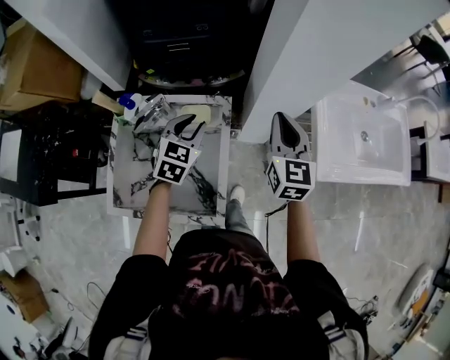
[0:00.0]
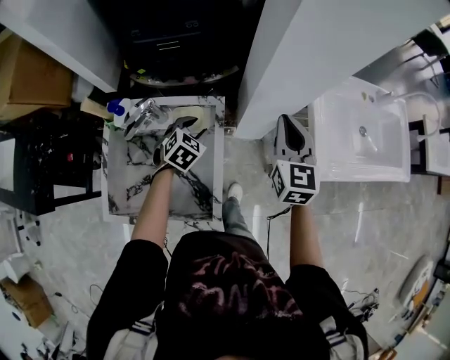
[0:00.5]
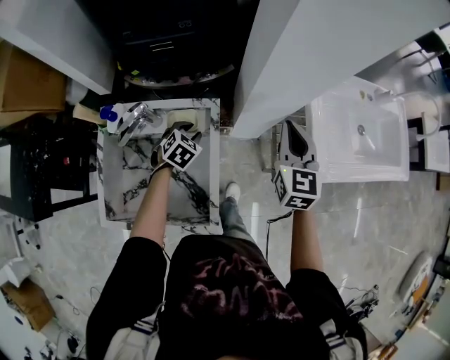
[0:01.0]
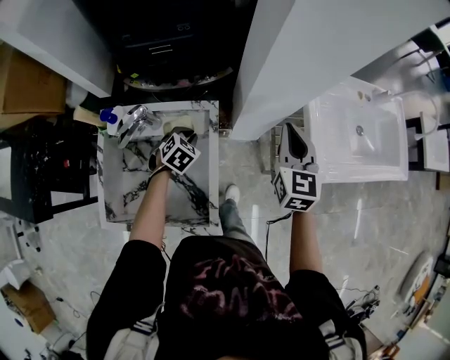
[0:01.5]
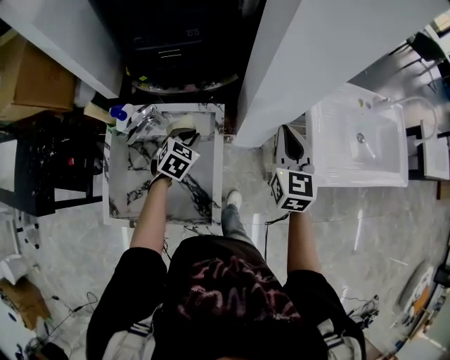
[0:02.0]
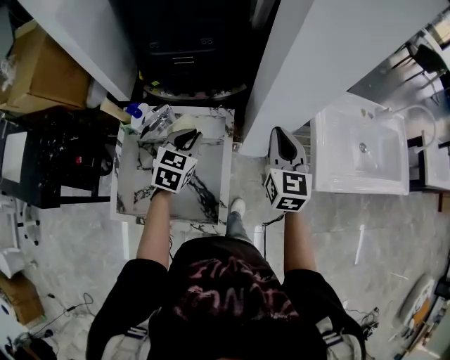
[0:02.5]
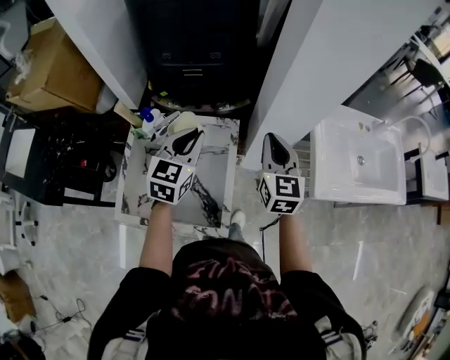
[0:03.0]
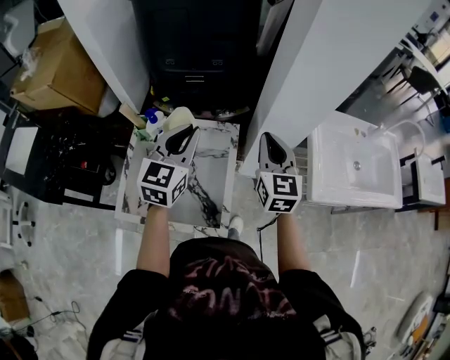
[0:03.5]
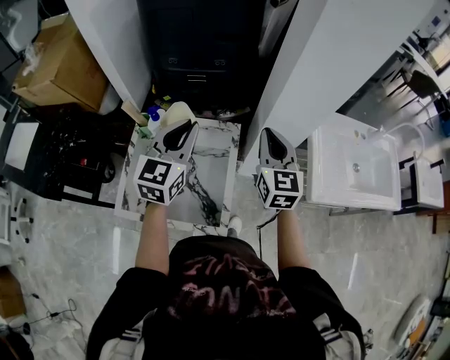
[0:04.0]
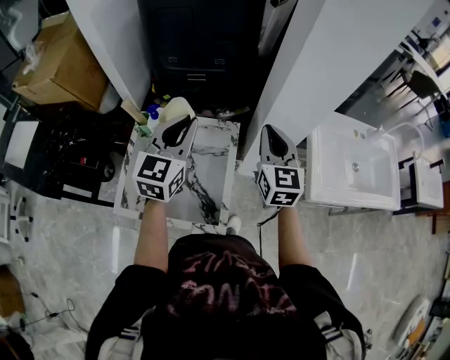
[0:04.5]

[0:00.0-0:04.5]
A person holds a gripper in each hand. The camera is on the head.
0:00.0 to 0:02.0: The left gripper goes roughly 10 cm downward.
0:02.0 to 0:04.5: The right gripper travels to the left and upward by about 15 cm; the left gripper goes approximately 30 cm upward, and angles its fingers upward, by roughly 40 degrees.

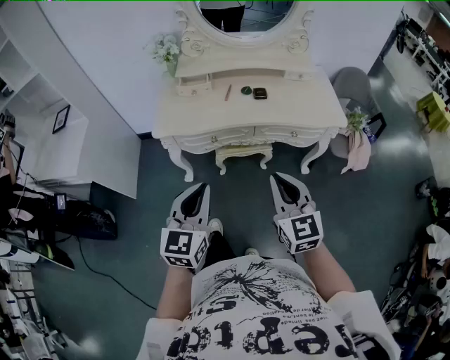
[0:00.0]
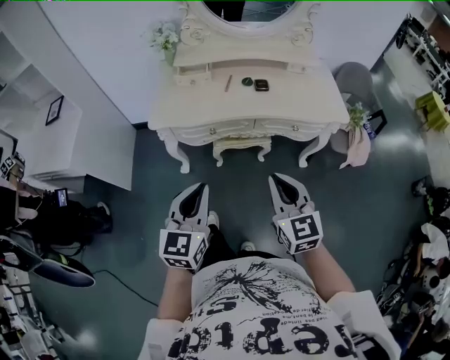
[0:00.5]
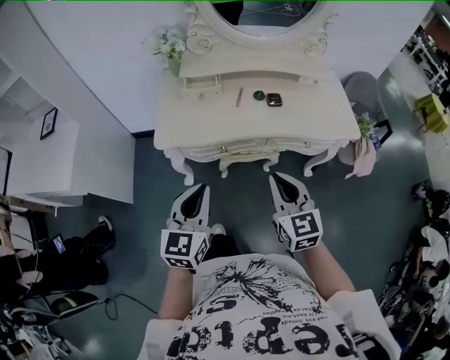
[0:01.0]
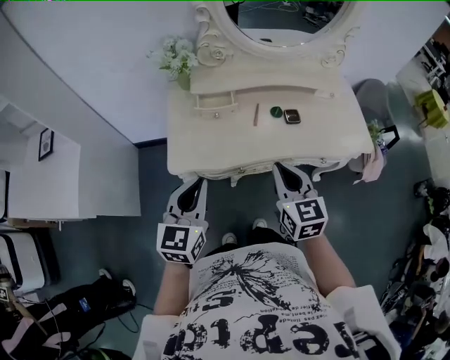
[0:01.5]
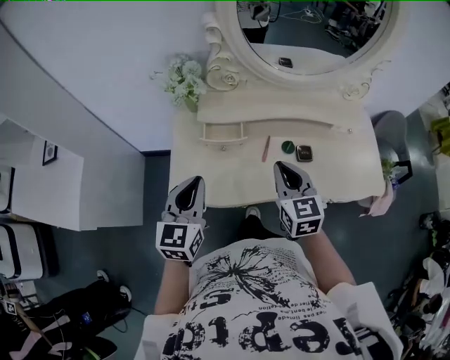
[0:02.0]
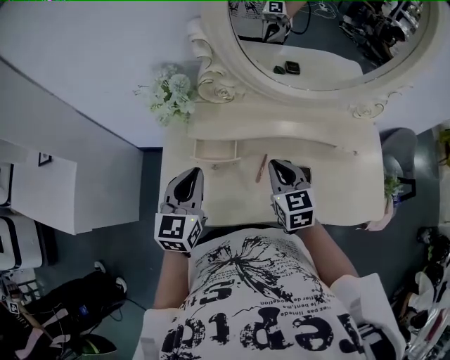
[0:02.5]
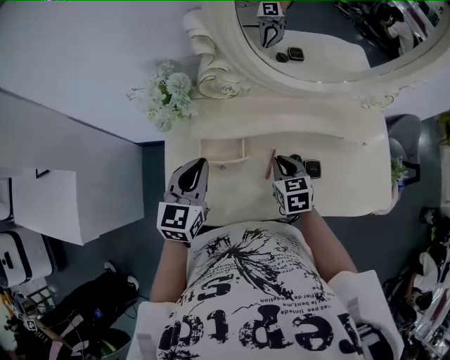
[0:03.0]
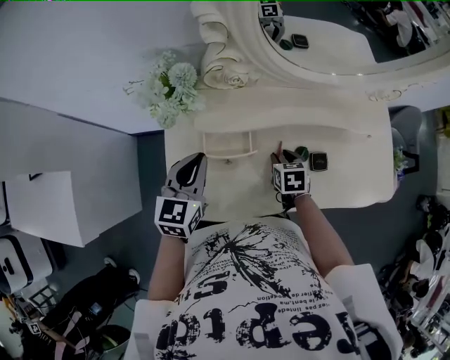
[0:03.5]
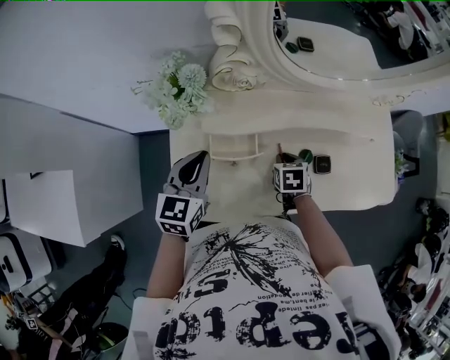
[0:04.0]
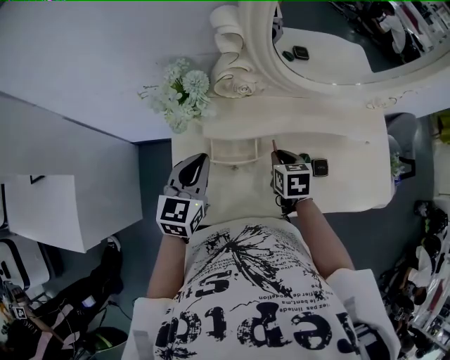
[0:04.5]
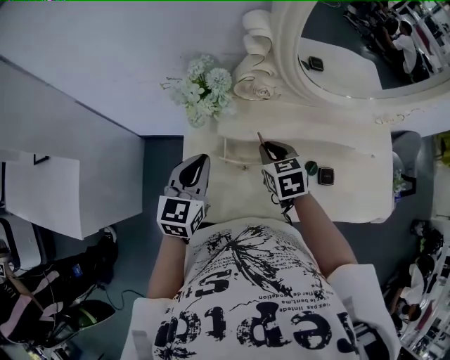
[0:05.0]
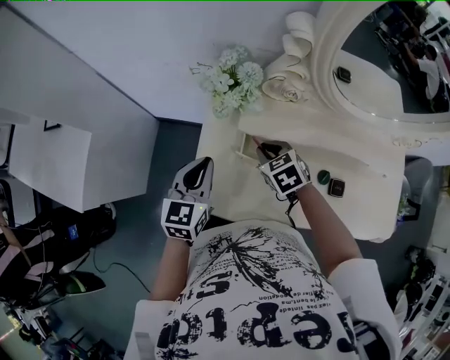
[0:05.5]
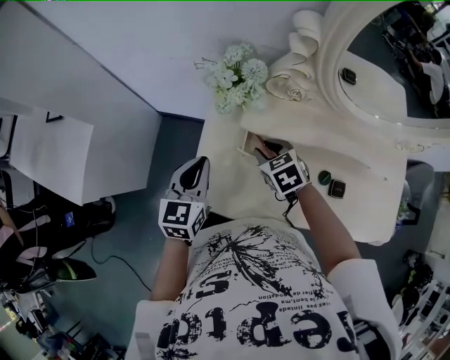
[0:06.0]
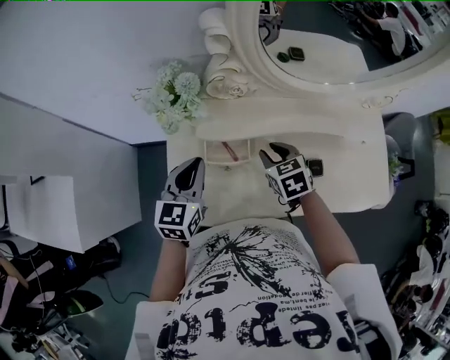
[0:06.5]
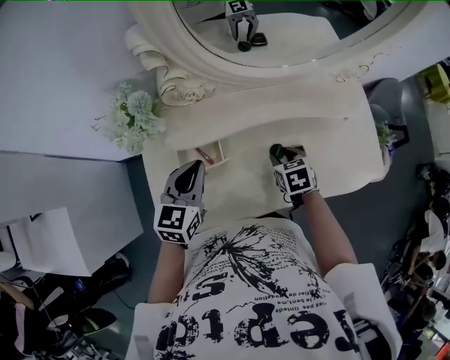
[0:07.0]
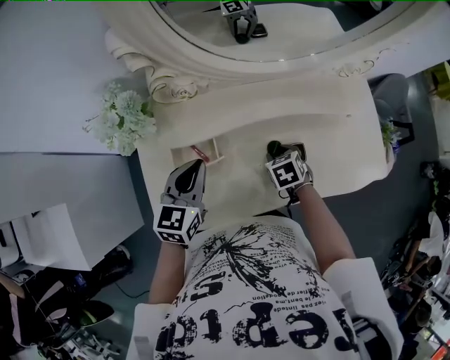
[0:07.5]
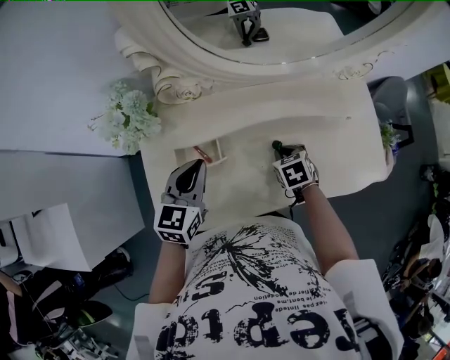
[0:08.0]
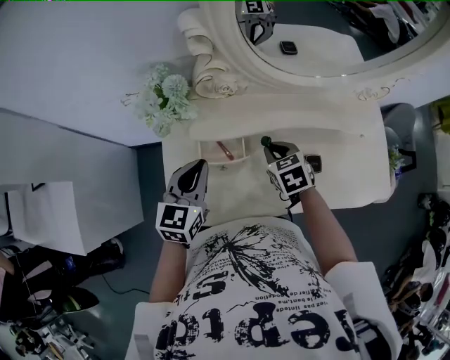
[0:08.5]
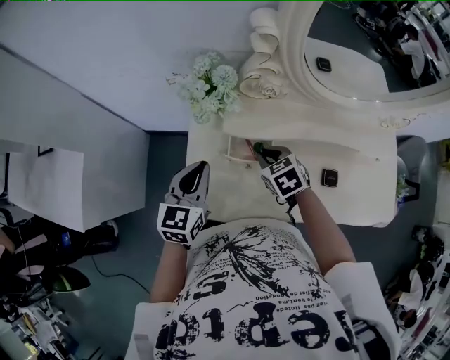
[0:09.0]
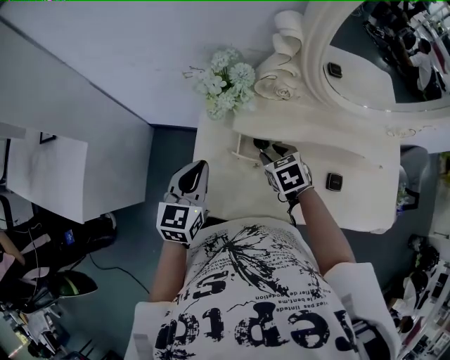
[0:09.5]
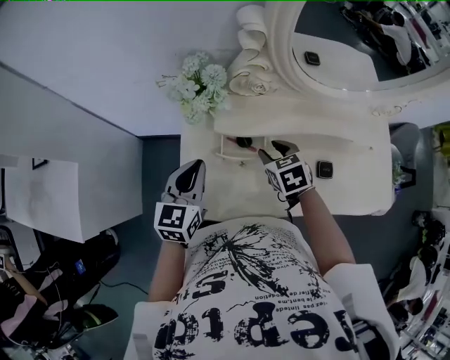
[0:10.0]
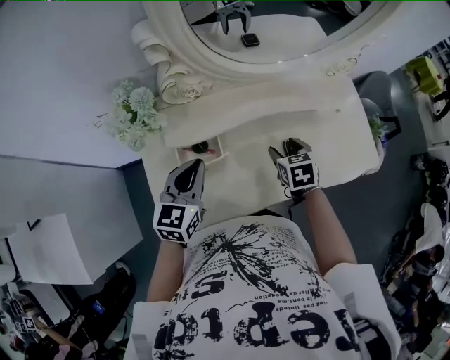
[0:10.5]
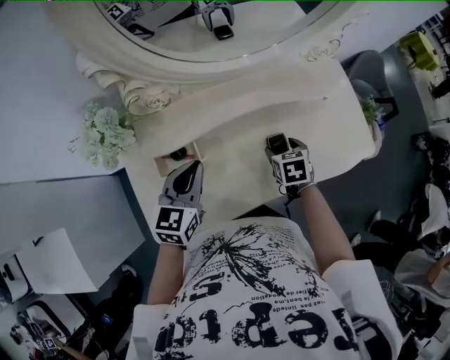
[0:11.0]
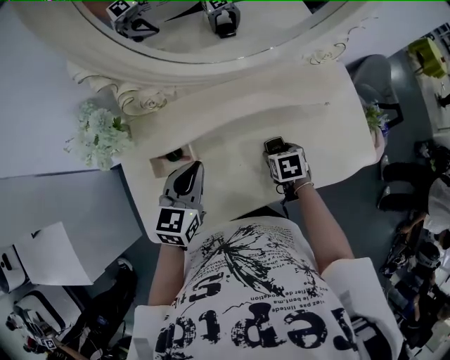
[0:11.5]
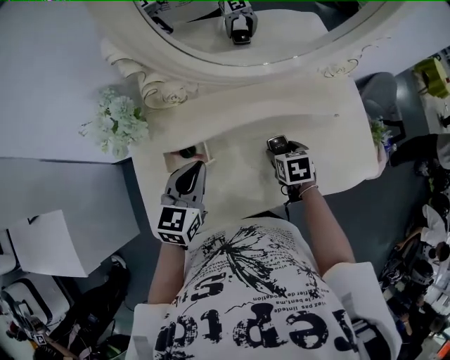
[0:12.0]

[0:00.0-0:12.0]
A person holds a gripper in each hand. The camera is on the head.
0:00.0 to 0:02.0: The left gripper travels forward and to the left by roughly 40 cm. The right gripper travels forward by roughly 40 cm.
0:02.0 to 0:04.0: The left gripper moves forward, about 20 cm, while the right gripper heads downward and forward, covering approximately 25 cm, and points its fingers some 40 degrees further downward.
0:04.0 to 0:06.0: The left gripper moves approximately 10 cm. The right gripper moves some 20 cm, and changes its angle by approximately 40 degrees.
0:06.0 to 0:08.0: The left gripper shifts by approximately 20 cm, and turns by about 30 degrees. The right gripper changes place by some 30 cm, and changes its angle by about 40 degrees.
0:08.0 to 0:10.0: The right gripper shifts roughly 20 cm to the left and upward, and opens. Meanwhile the left gripper moves to the left, about 15 cm.
0:10.0 to 0:12.0: The right gripper moves about 25 cm, rotates approximately 30 degrees, and opens up. The left gripper shifts by some 20 cm.

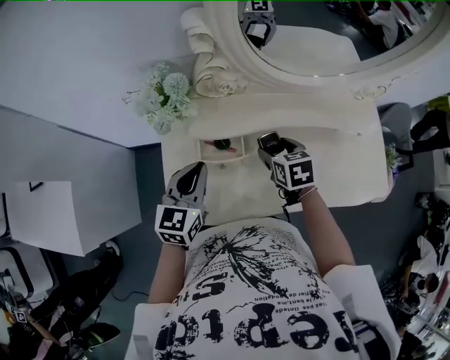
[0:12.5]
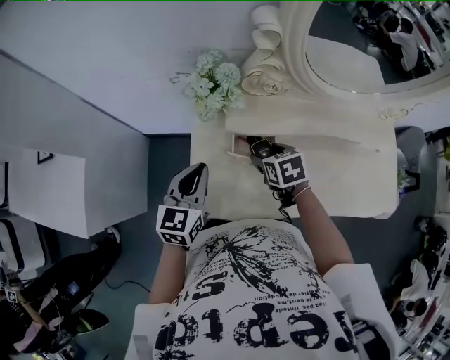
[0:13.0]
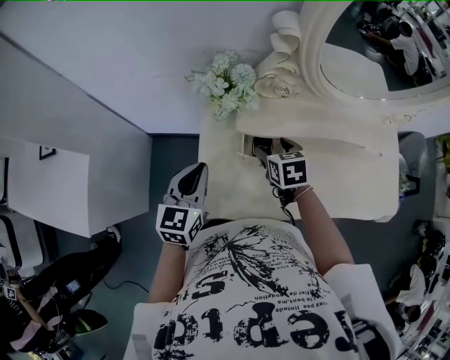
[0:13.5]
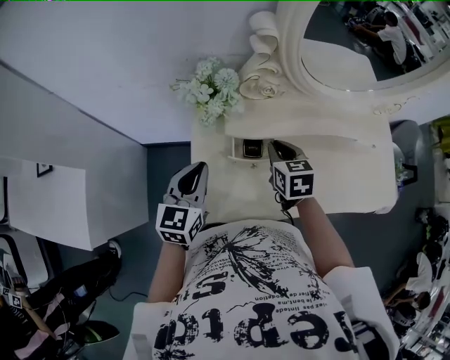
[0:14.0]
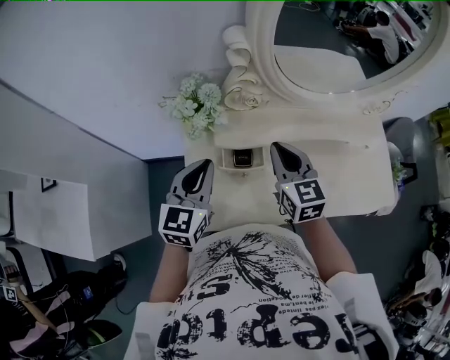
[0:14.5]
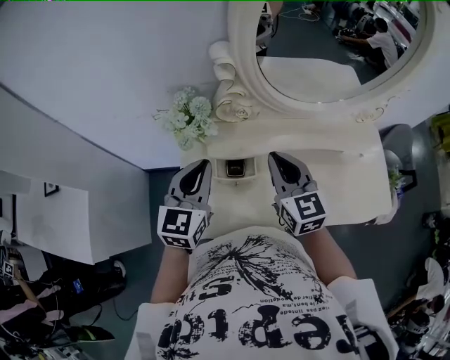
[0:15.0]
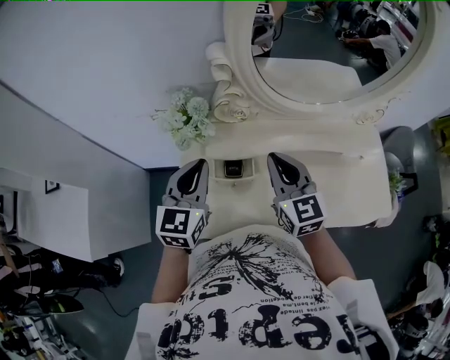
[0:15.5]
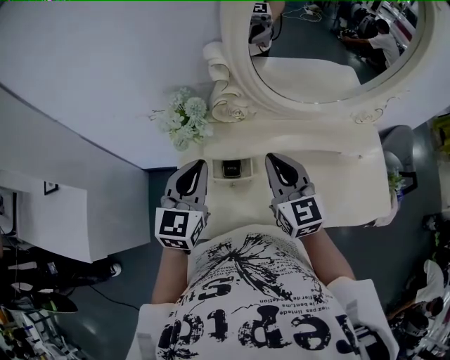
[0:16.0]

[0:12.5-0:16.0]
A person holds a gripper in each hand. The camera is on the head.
0:12.5 to 0:14.5: The right gripper travels upward and to the left by some 15 cm, angles its fingers upward, by some 30 degrees, and closes its fingers. Meanwhile the left gripper is displaced upward by roughly 10 cm, and goes to the left and returns, roughly 15 cm each way.
0:14.5 to 0:16.0: The grippers stay close to where they were, moving slightly.

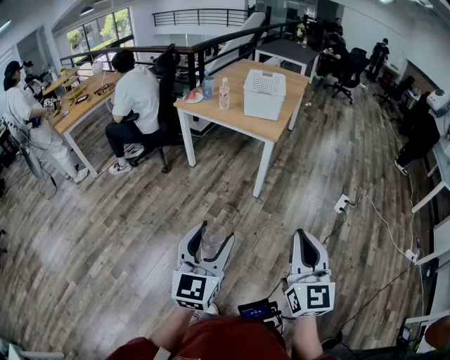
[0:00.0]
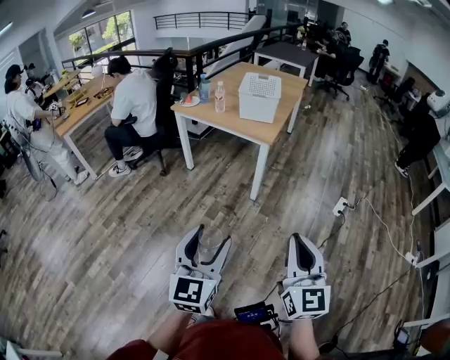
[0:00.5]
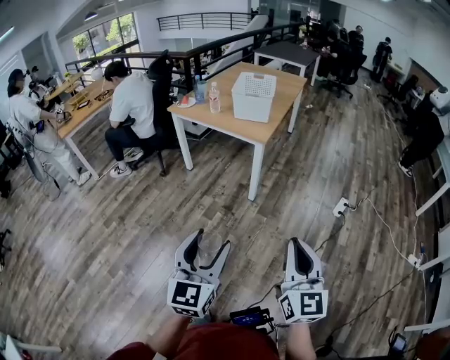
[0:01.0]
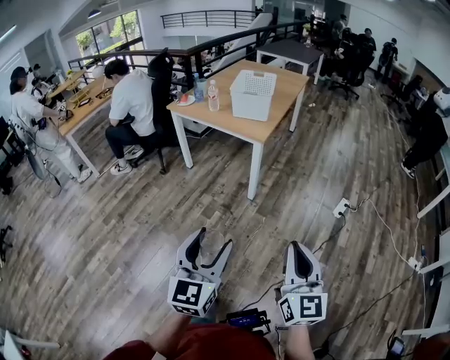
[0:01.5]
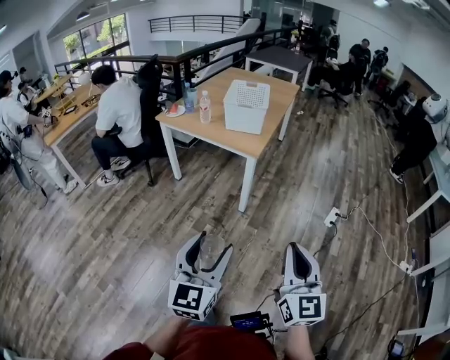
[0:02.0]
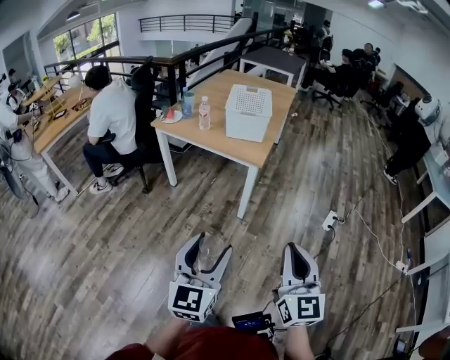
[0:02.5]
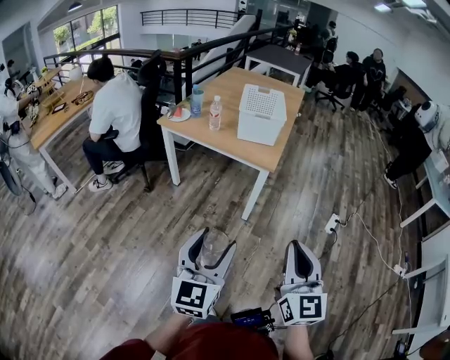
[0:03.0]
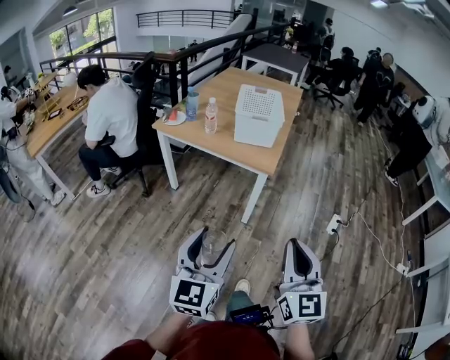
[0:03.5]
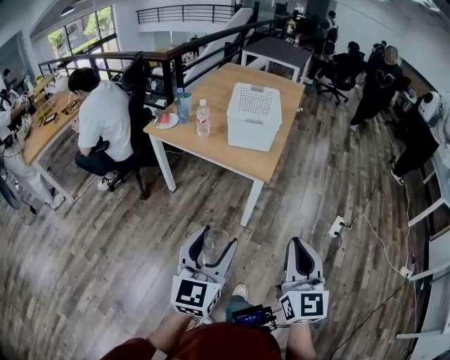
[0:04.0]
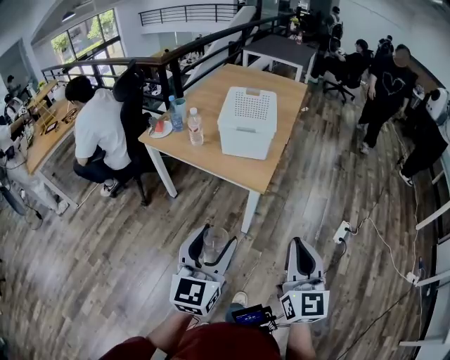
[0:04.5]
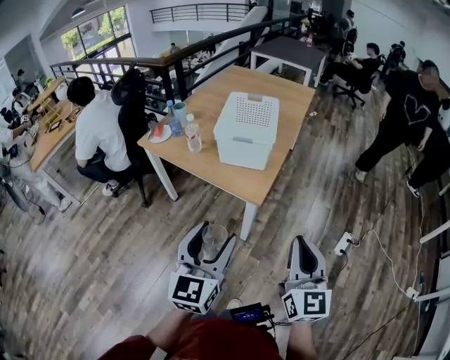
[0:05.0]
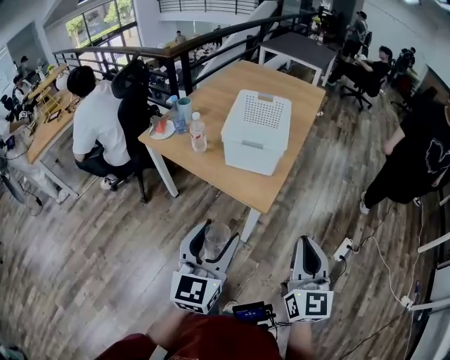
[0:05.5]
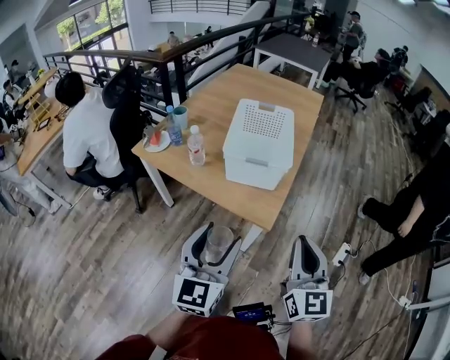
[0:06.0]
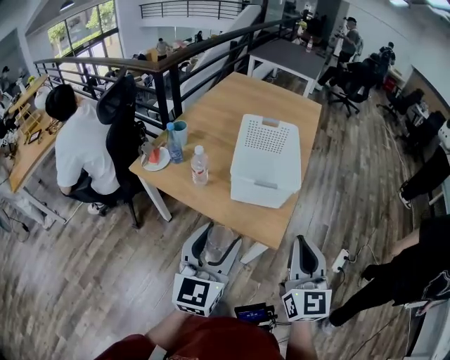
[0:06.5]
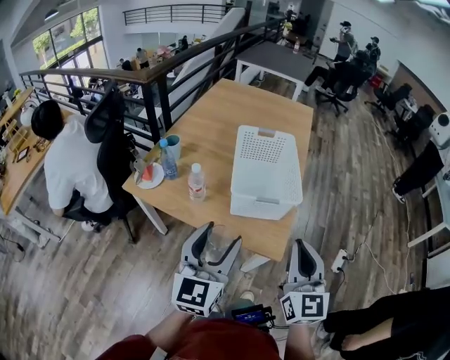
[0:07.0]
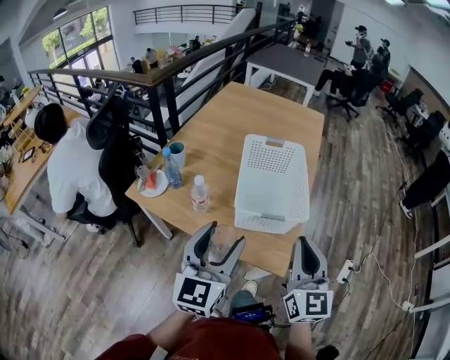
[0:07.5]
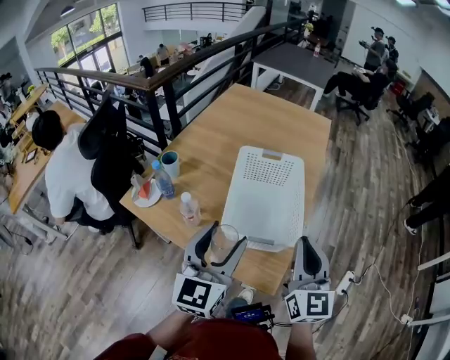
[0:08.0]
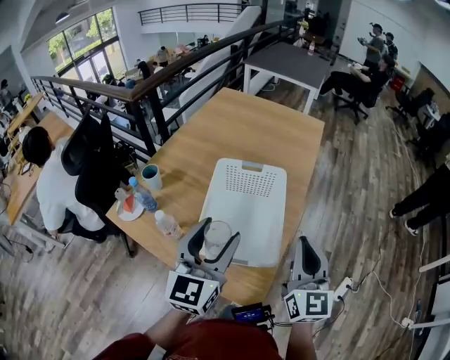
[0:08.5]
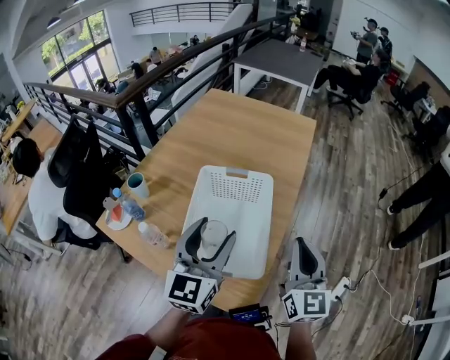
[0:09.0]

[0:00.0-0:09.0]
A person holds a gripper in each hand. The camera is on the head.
0:00.0 to 0:02.0: Both grippers travel together to the right and forward, some 10 cm.
0:02.0 to 0:04.5: The two grippers go approximately 30 cm forward.
0:04.5 to 0:07.0: Both grippers move forward, some 30 cm.
0:07.0 to 0:09.0: The grippers both shift forward and to the right by roughly 30 cm.
